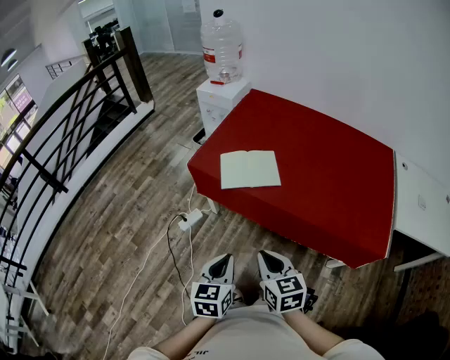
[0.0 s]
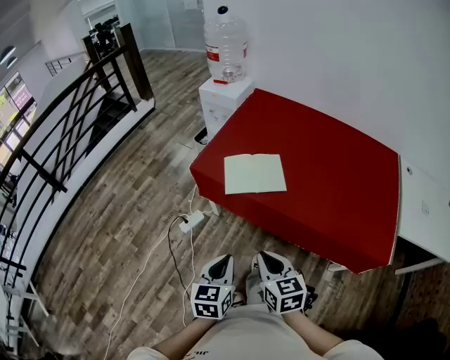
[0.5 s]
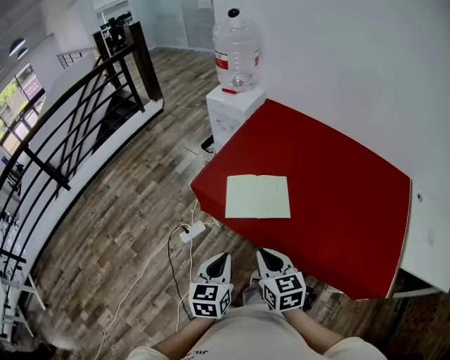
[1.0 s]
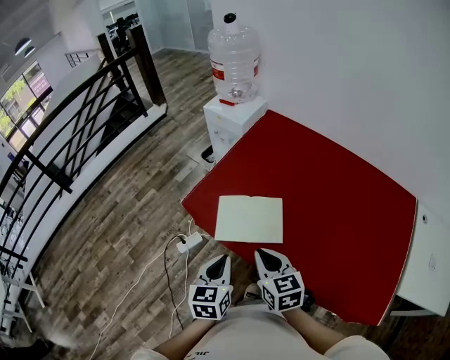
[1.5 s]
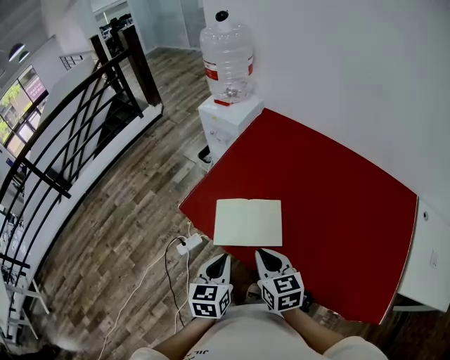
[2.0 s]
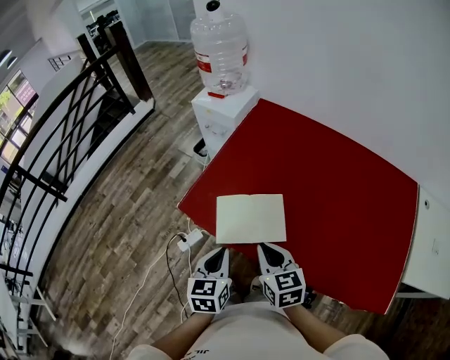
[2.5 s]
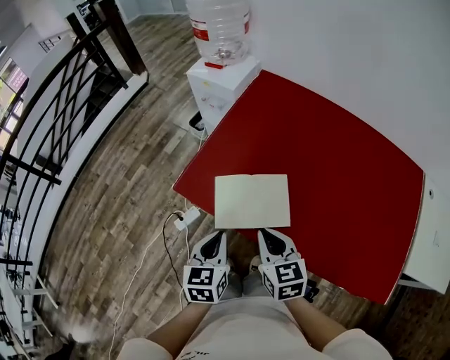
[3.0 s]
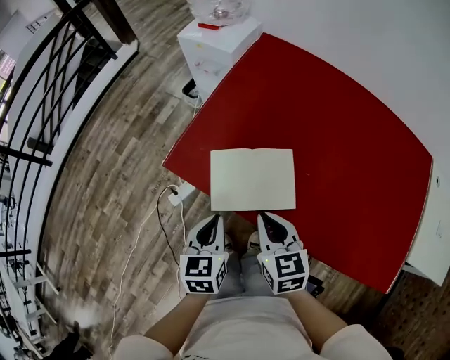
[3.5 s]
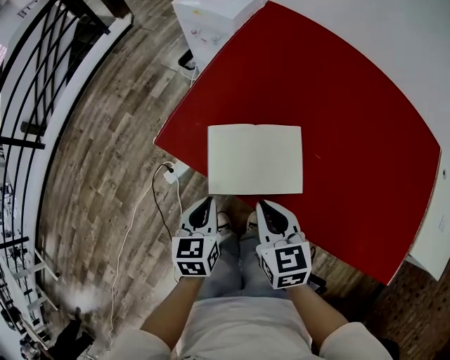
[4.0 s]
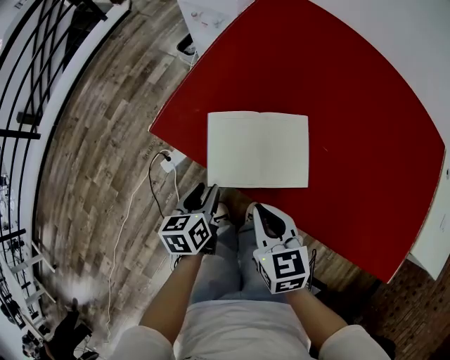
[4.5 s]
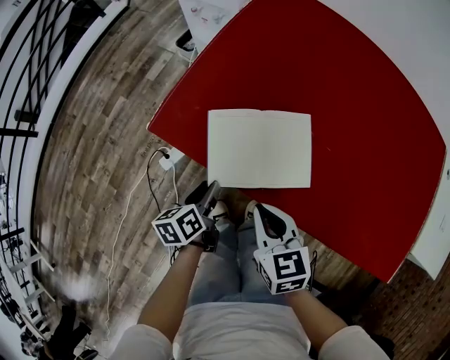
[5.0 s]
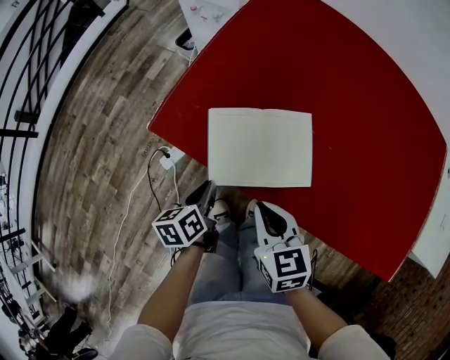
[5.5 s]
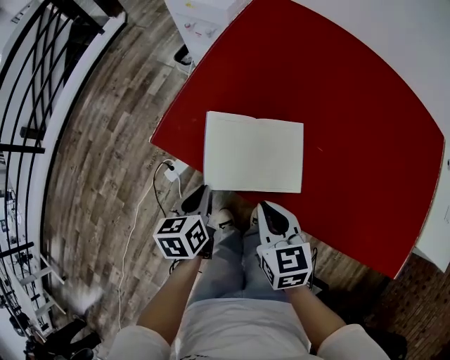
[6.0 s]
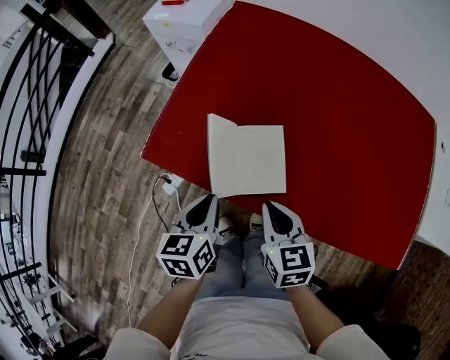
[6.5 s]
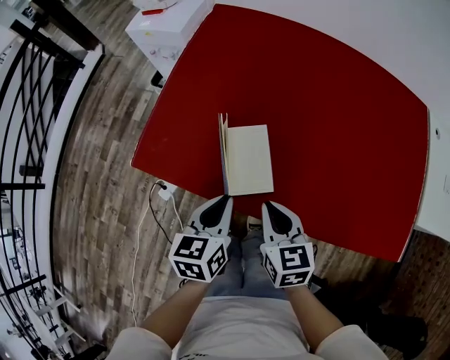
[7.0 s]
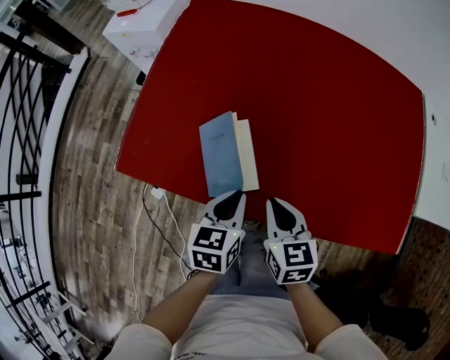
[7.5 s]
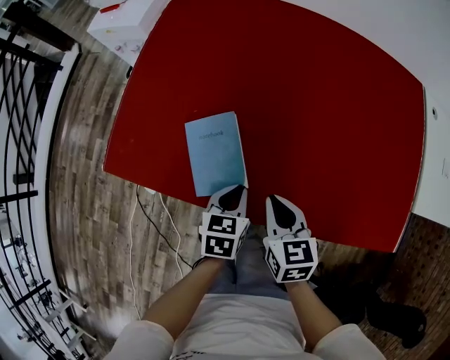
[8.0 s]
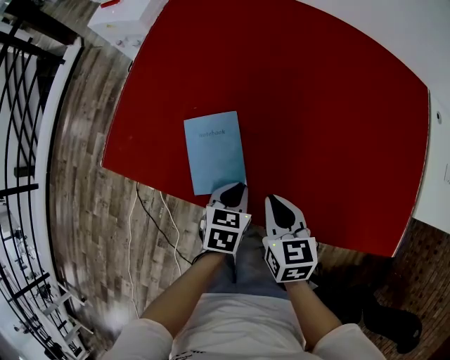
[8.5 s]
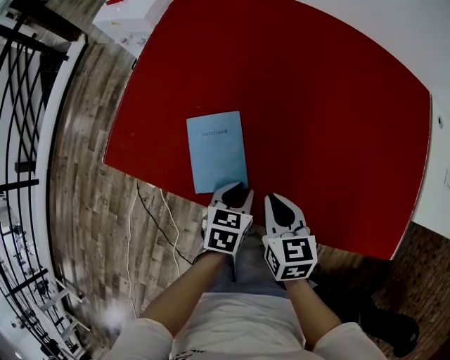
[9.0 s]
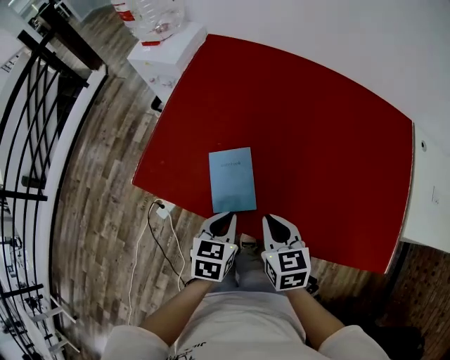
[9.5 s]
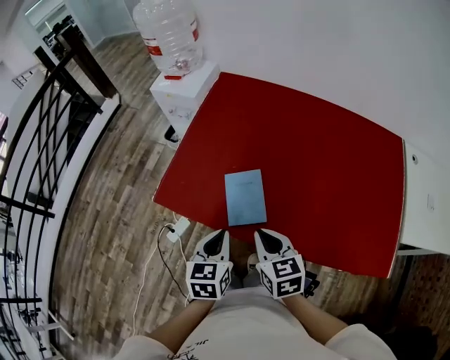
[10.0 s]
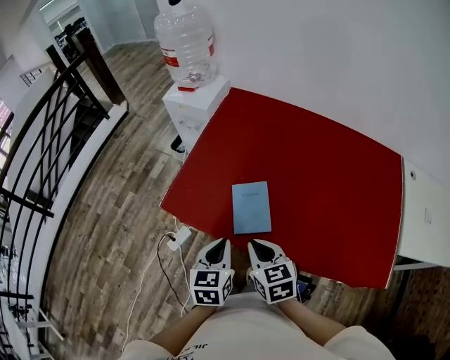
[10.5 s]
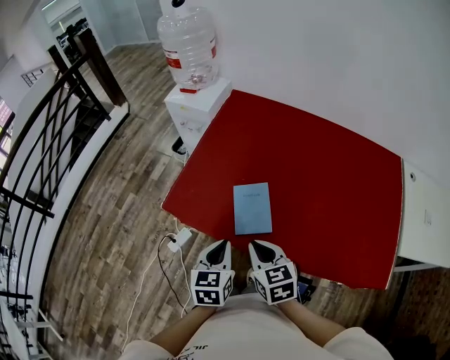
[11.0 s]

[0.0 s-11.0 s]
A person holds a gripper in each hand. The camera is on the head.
0.0 to 2.0 s: The two grippers go approximately 30 cm forward.
2.0 to 3.5 s: Both grippers travel together downward and forward, approximately 10 cm.
3.5 to 5.5 s: The right gripper moves downward, about 10 cm. The left gripper goes roughly 15 cm downward, changes its angle by approximately 30 degrees, and opens, then closes once more.
5.5 to 7.5 s: The right gripper goes about 15 cm to the right, and swivels about 20 degrees, while the left gripper heads to the right and upward, covering approximately 25 cm, and changes its angle by roughly 40 degrees.
7.5 to 9.0 s: The left gripper is displaced downward and to the right by approximately 10 cm.
9.0 to 11.0 s: The right gripper travels upward, to the left and backward by some 25 cm. The left gripper goes about 30 cm upward and to the left, and rotates some 30 degrees.

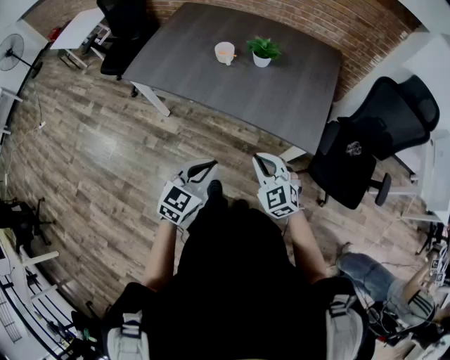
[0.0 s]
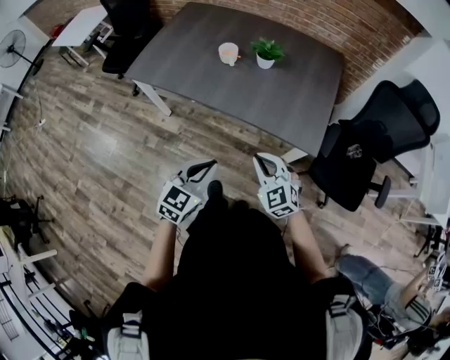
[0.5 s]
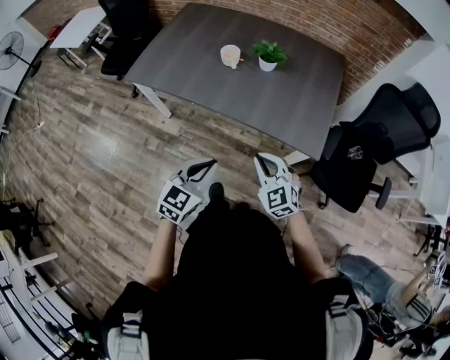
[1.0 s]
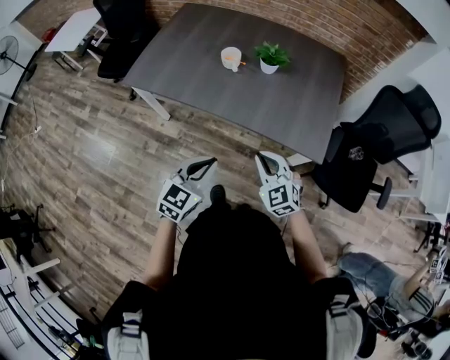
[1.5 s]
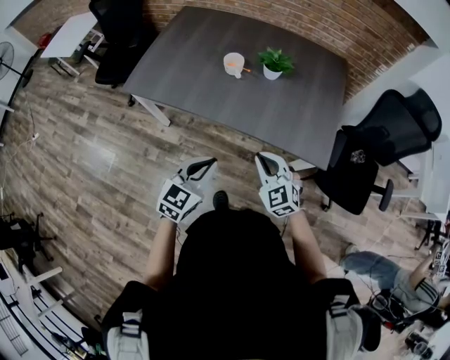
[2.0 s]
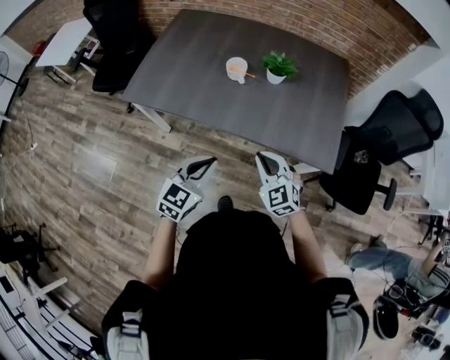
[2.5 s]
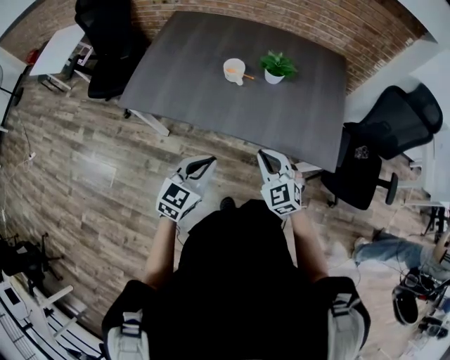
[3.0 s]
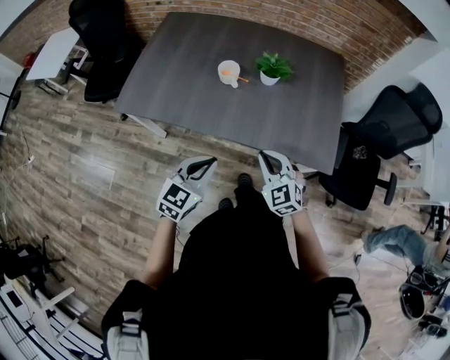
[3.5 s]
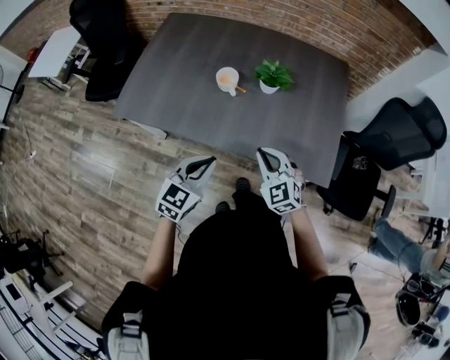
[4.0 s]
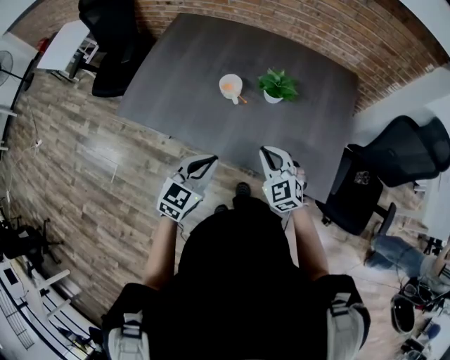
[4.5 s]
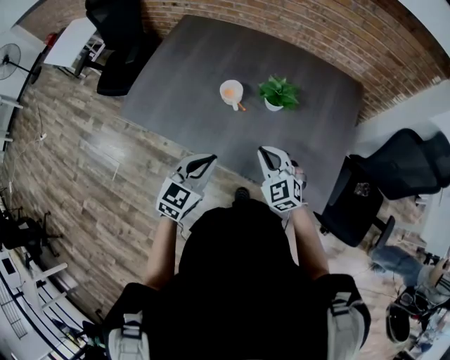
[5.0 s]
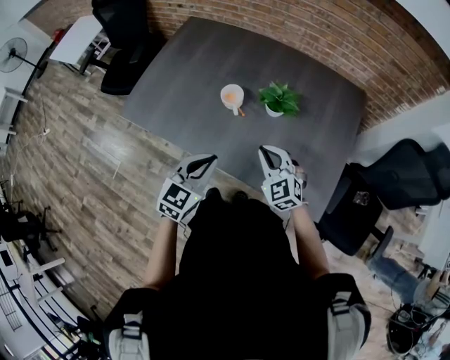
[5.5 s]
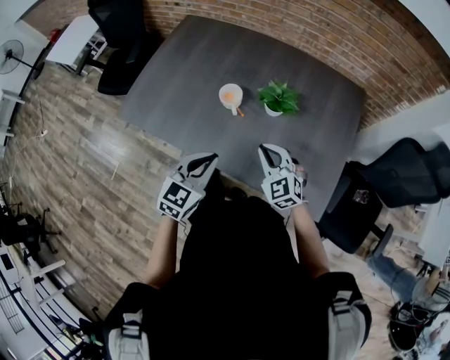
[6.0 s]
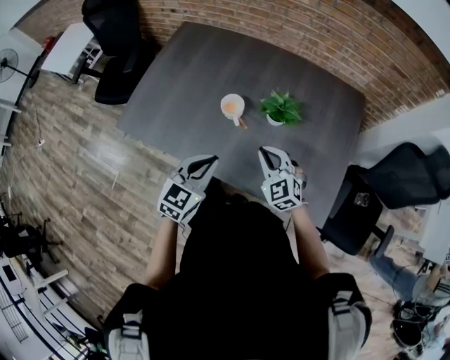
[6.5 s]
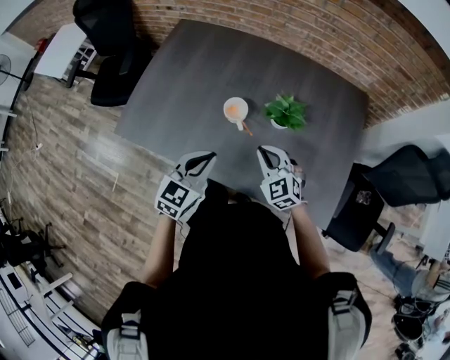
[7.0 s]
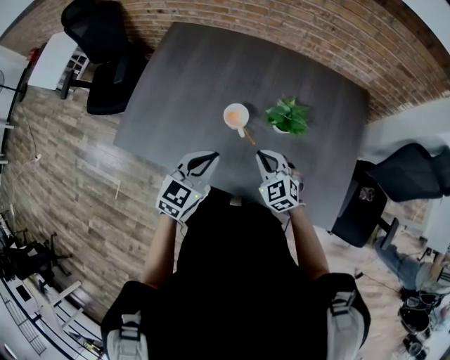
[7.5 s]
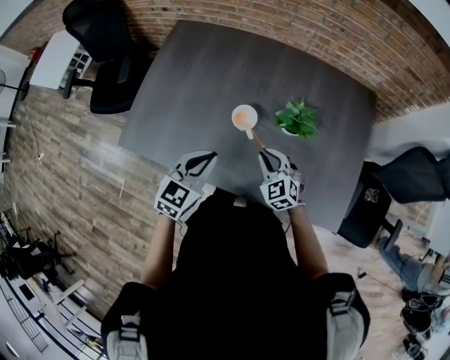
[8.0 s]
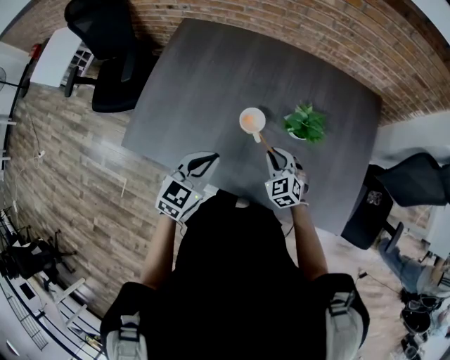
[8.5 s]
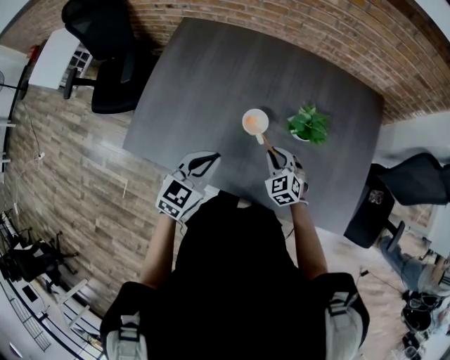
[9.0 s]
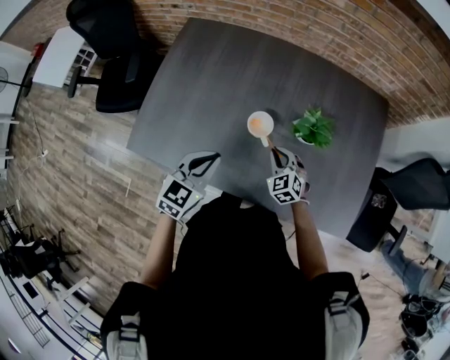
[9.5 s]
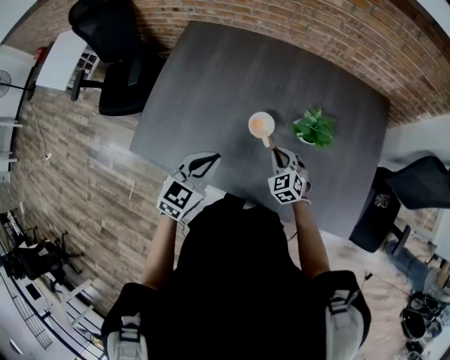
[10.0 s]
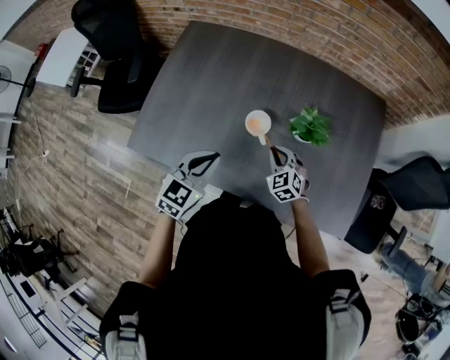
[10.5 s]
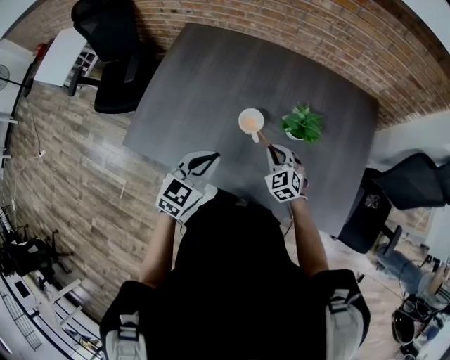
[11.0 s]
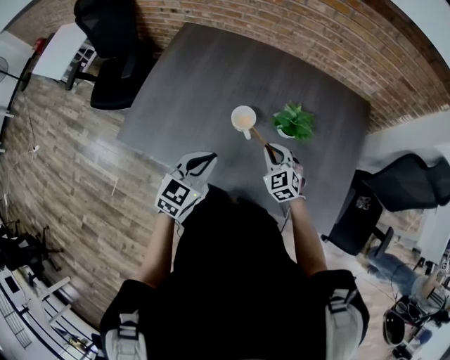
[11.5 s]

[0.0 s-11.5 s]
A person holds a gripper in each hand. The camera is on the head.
0.0 to 2.0 s: The right gripper shifts some 10 cm forward and to the left. Meanwhile the left gripper shifts roughly 15 cm to the left and forward.
2.0 to 4.0 s: The two grippers go approximately 15 cm forward.
4.0 to 6.0 s: Both grippers move forward, about 10 cm.
6.0 to 7.5 s: The left gripper heads forward and to the left, covering some 15 cm. Meanwhile the right gripper moves forward, to the left and downward, about 10 cm.
7.5 to 9.5 s: The left gripper moves to the left, approximately 10 cm. The right gripper goes approximately 10 cm downward and forward.
9.5 to 11.5 s: The left gripper goes about 5 cm to the right. The right gripper goes about 5 cm upward.

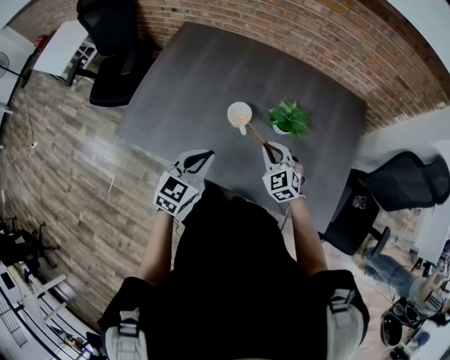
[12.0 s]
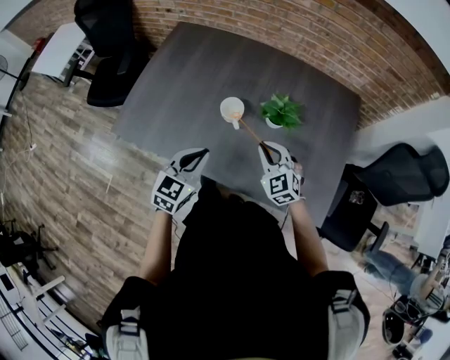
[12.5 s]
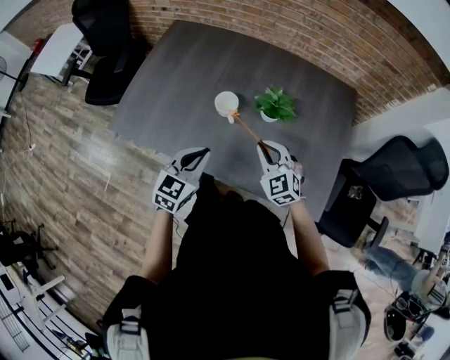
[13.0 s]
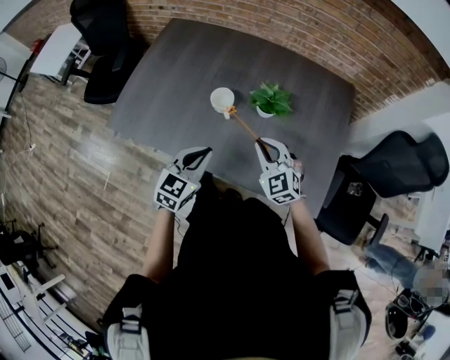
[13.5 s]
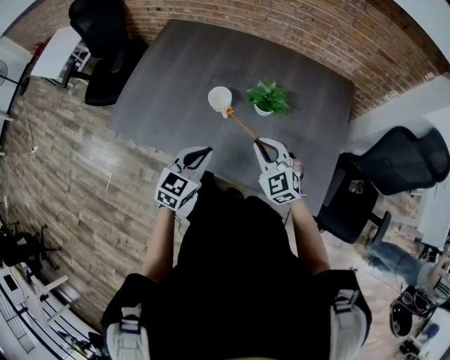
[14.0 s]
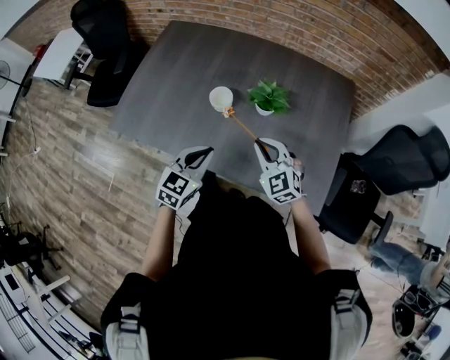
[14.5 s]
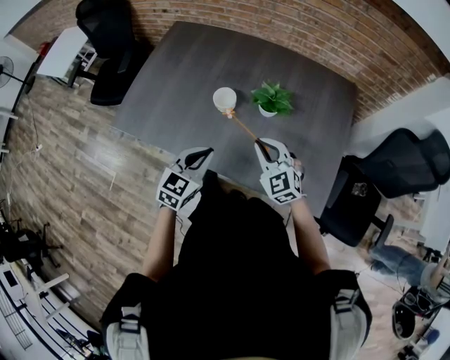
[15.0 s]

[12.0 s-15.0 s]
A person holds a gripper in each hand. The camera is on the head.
12.0 to 13.5 s: The right gripper heads backward and upward, covering roughly 10 cm. Meanwhile the left gripper travels to the right and backward by some 10 cm.
13.5 to 15.0 s: The grippers make only small movements.

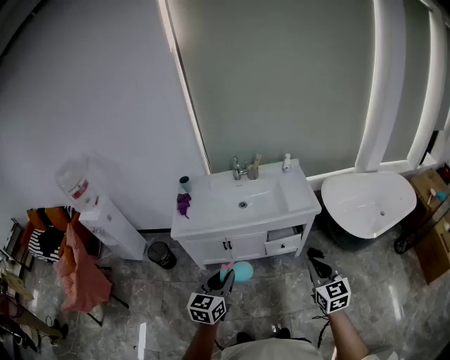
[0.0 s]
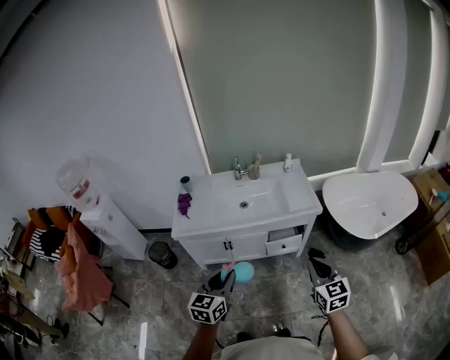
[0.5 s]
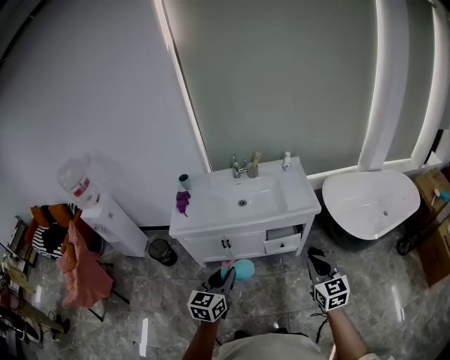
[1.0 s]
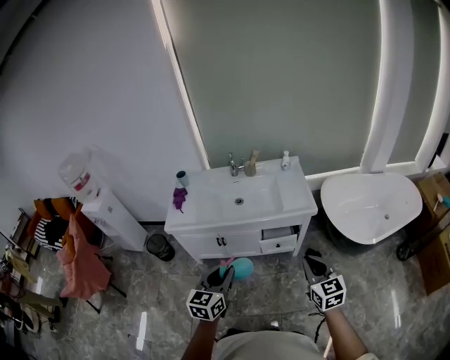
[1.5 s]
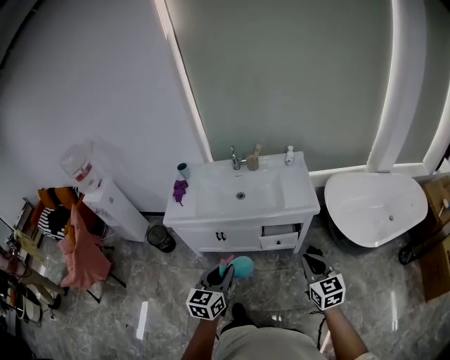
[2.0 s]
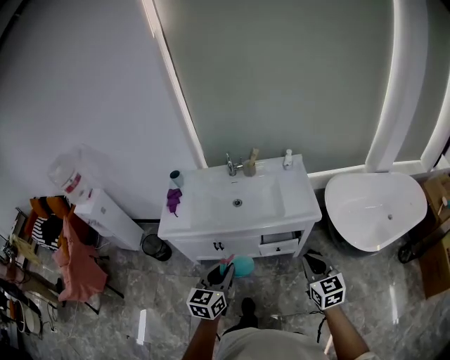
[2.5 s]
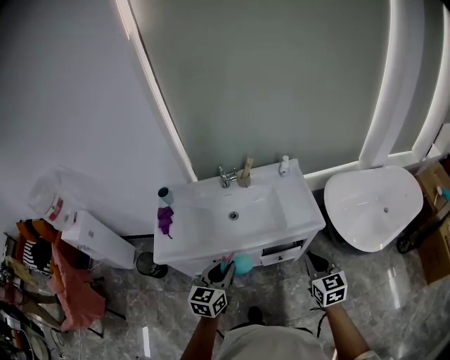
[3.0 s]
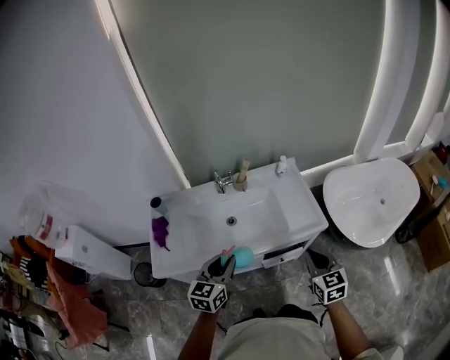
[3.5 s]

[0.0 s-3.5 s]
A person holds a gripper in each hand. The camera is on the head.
0.0 to 2.0 s: The left gripper is displaced to the right by approximately 10 cm, while the right gripper is displaced to the right and forward by approximately 10 cm.
2.0 to 3.5 s: Both grippers move forward, some 25 cm.
